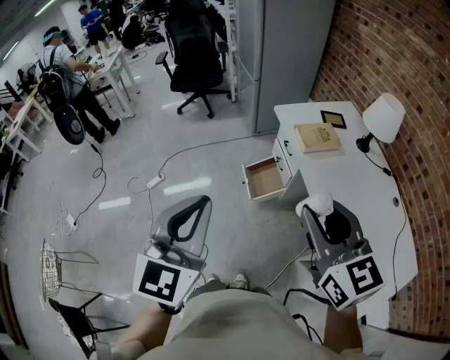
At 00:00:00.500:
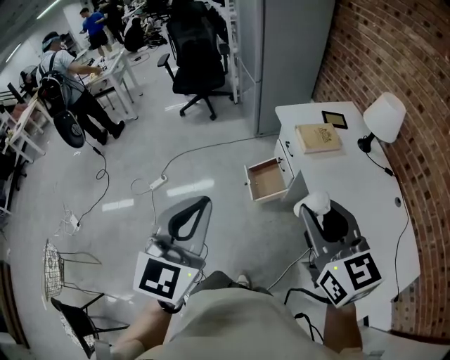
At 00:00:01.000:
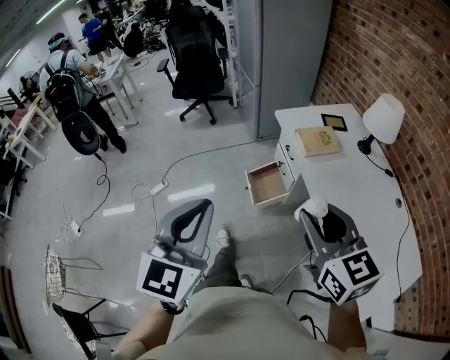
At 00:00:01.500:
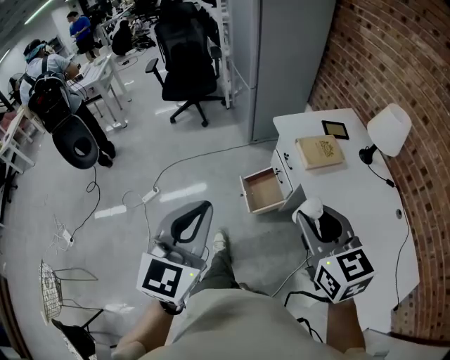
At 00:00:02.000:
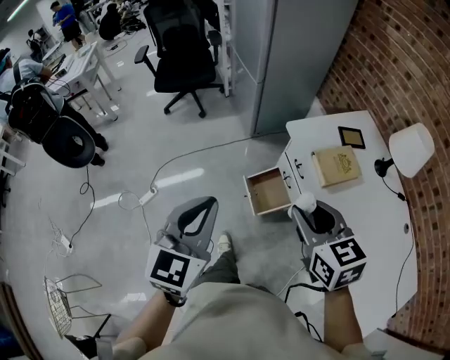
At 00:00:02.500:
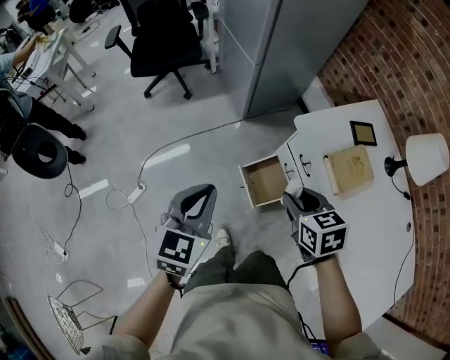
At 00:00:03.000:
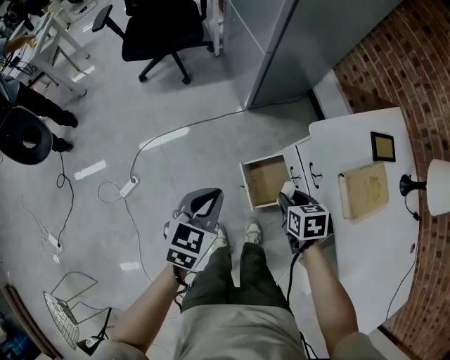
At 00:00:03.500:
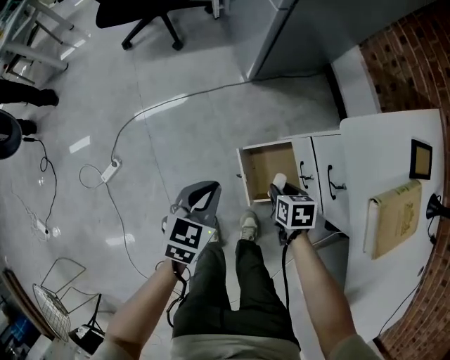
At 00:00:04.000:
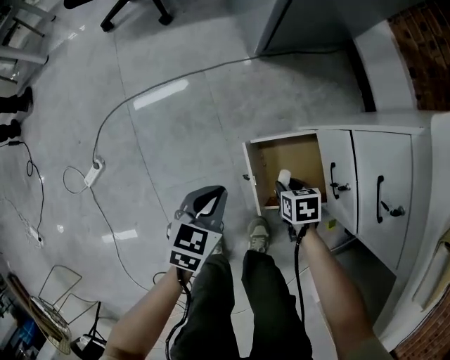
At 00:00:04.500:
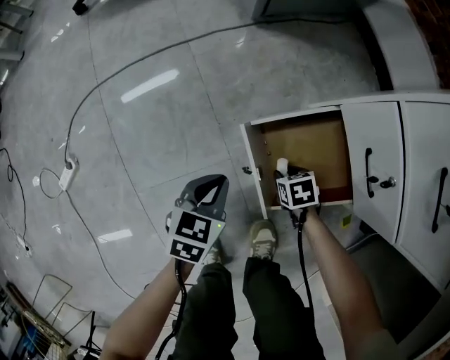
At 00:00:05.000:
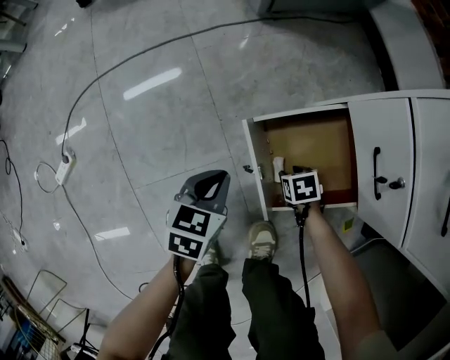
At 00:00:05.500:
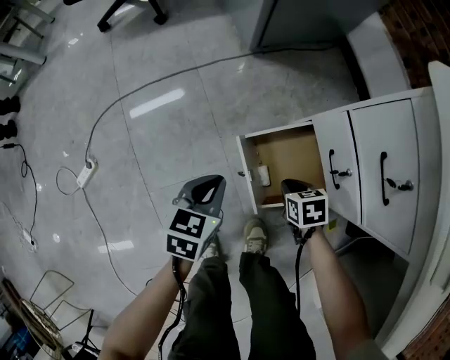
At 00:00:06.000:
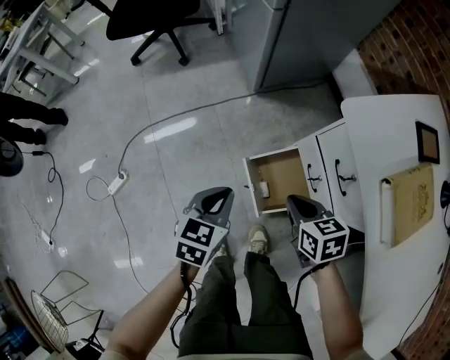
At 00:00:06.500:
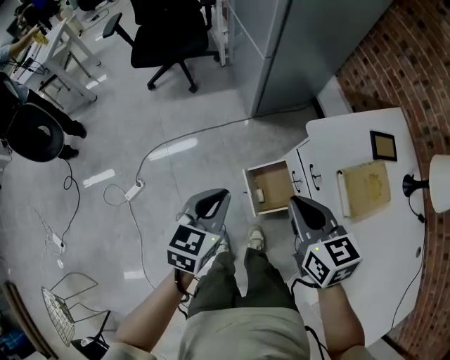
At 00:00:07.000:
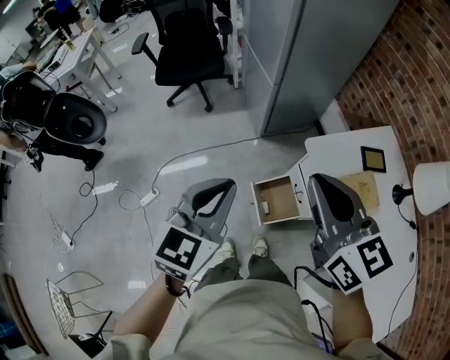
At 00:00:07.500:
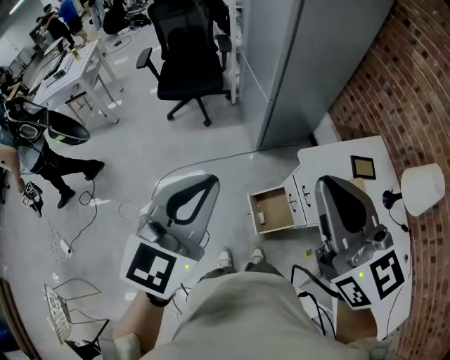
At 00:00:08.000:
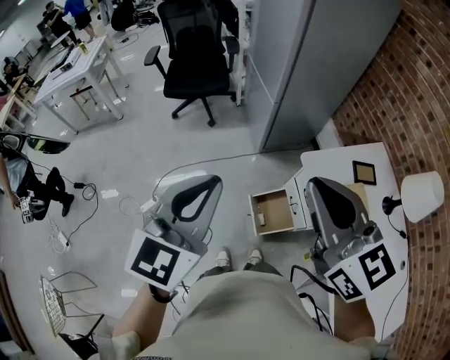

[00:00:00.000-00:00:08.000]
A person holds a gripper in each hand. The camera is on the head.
00:00:00.000 to 00:00:02.000: The right gripper moves forward and downward, about 30 cm, and rotates some 20 degrees. Meanwhile the left gripper shifts approximately 30 cm forward.
00:00:02.000 to 00:00:04.000: Both grippers travel together downward, roughly 70 cm. The left gripper changes its angle by some 40 degrees, while the right gripper tips its fingers downward by roughly 40 degrees.
00:00:04.000 to 00:00:06.000: The right gripper shifts roughly 30 cm upward, turns by some 20 degrees, and closes. Meanwhile the left gripper is displaced upward by approximately 15 cm.
00:00:06.000 to 00:00:08.000: The grippers both shift upward by some 60 cm. The right gripper points its fingers approximately 40 degrees further upward, while the left gripper changes its angle by some 40 degrees.

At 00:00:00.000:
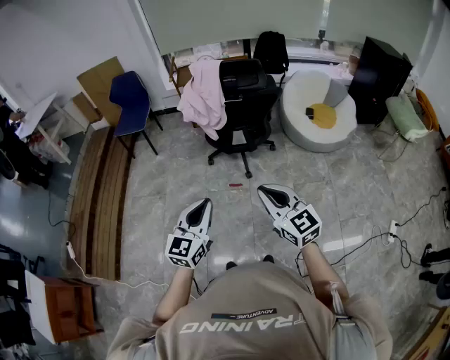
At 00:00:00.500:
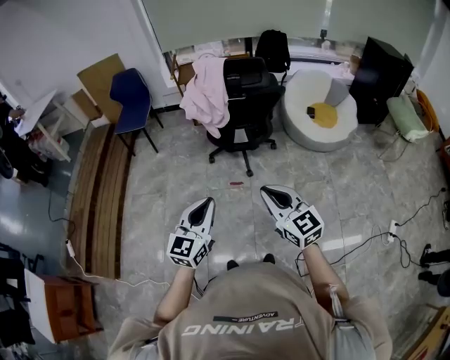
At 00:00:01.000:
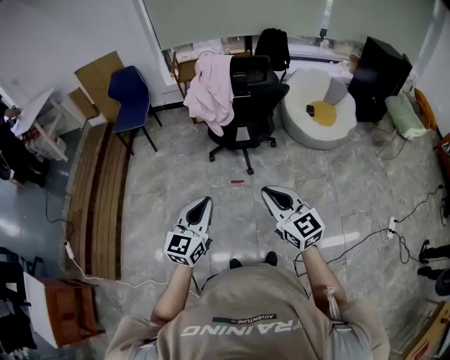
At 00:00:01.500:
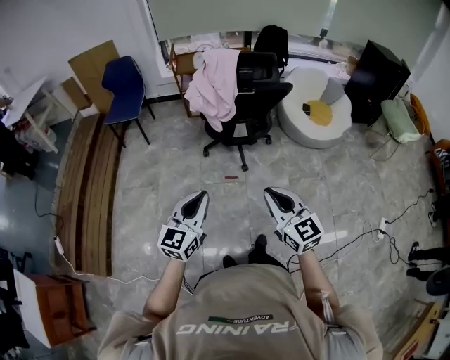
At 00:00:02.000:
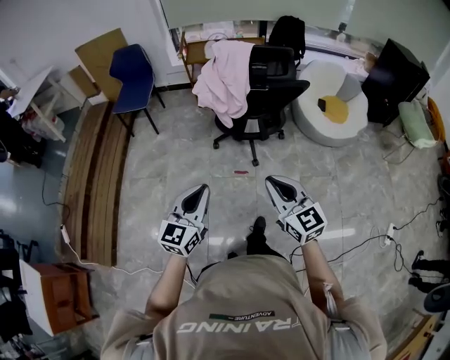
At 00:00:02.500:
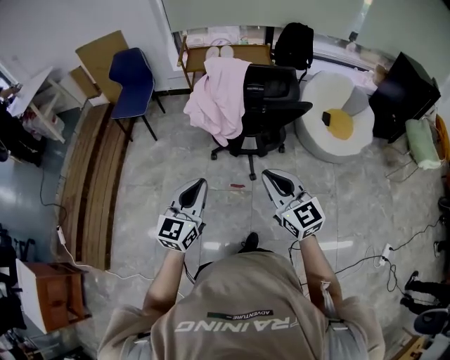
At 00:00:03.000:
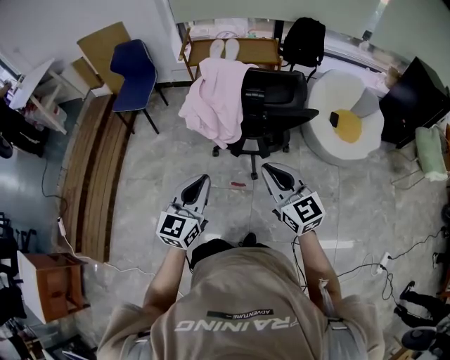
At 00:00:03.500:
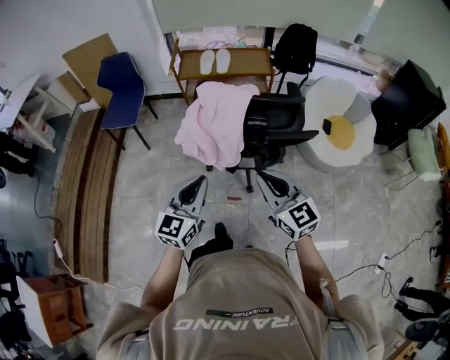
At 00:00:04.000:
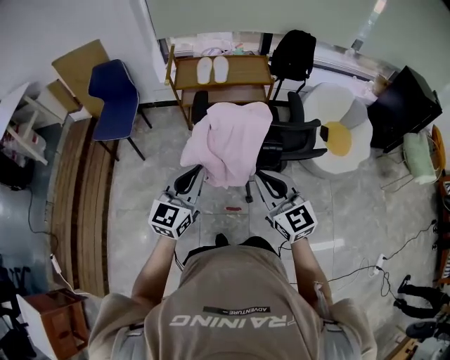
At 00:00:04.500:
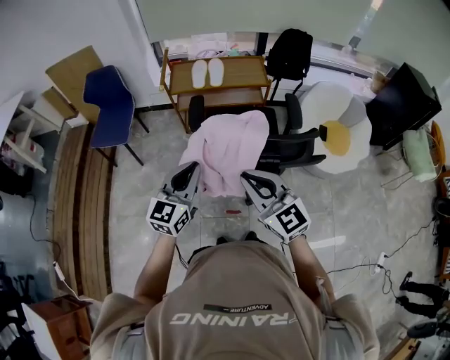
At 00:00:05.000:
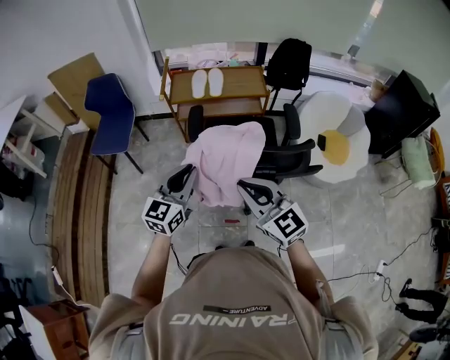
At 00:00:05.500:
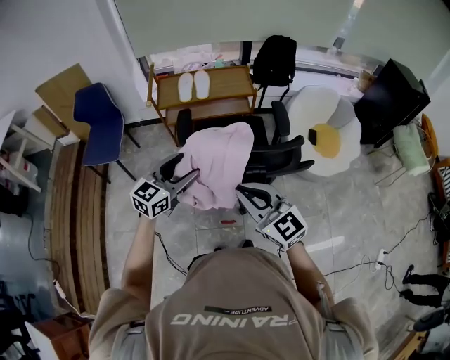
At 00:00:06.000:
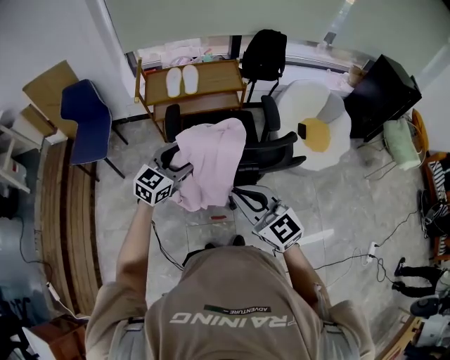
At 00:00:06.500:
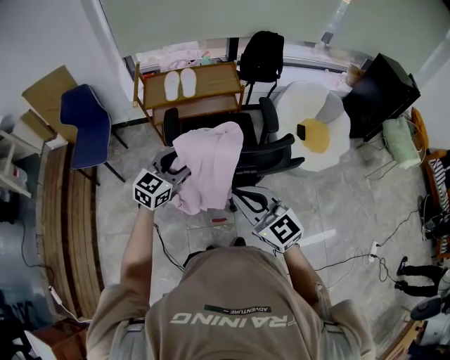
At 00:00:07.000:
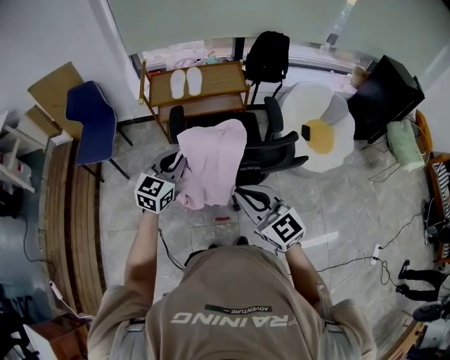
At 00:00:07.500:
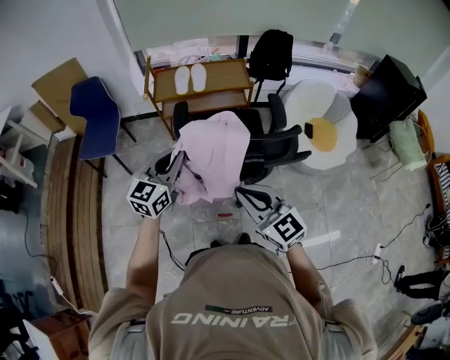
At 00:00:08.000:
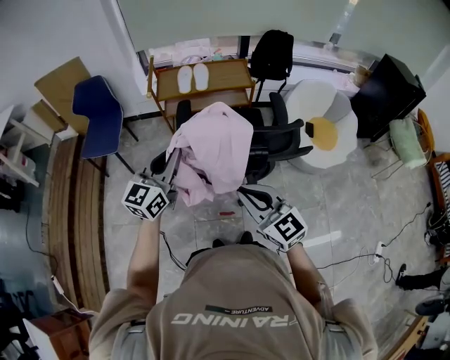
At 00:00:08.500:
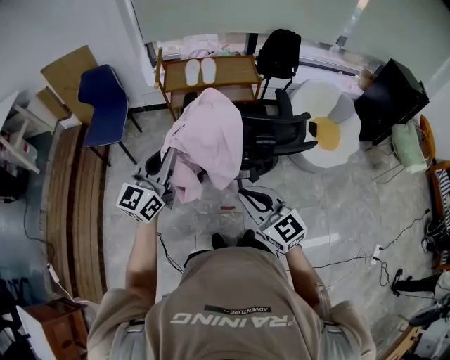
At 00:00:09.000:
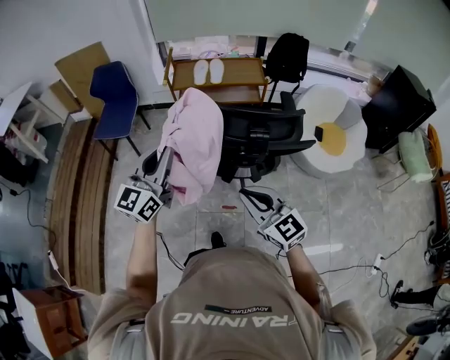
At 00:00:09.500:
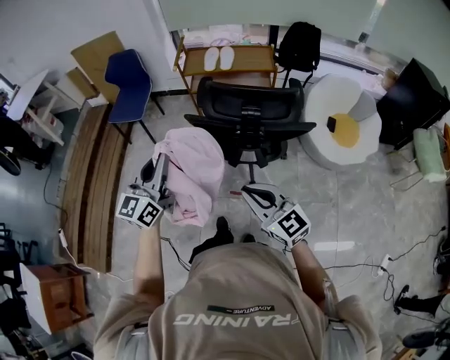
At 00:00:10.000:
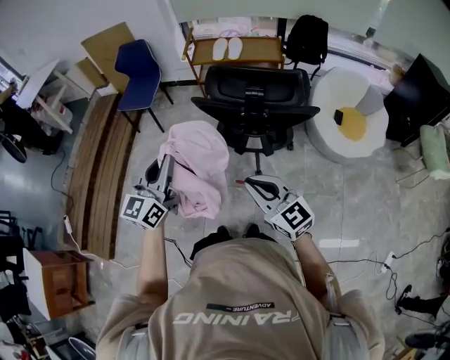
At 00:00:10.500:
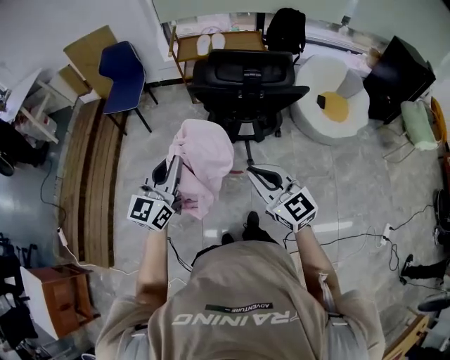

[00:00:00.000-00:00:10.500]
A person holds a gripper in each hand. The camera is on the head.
00:00:00.000 to 00:00:02.000: The two grippers go approximately 10 cm forward and to the left.
00:00:02.000 to 00:00:04.000: The two grippers go some 40 cm forward.
00:00:04.000 to 00:00:06.500: The left gripper heads forward, covering roughly 15 cm, turns by some 20 degrees, and opens.
00:00:06.500 to 00:00:08.500: The left gripper is displaced backward, to the left and upward by roughly 20 cm, changes its angle by about 30 degrees, and closes its fingers. The right gripper is displaced backward by some 10 cm.
00:00:08.500 to 00:00:10.500: The two grippers go some 25 cm backward.

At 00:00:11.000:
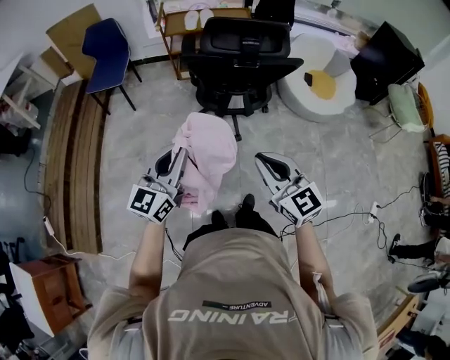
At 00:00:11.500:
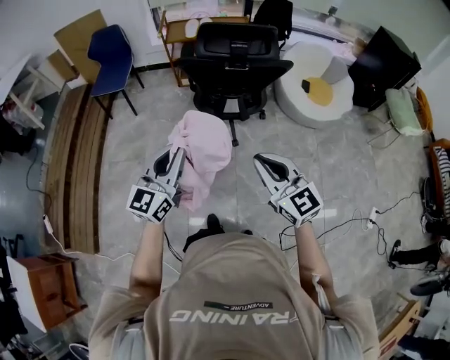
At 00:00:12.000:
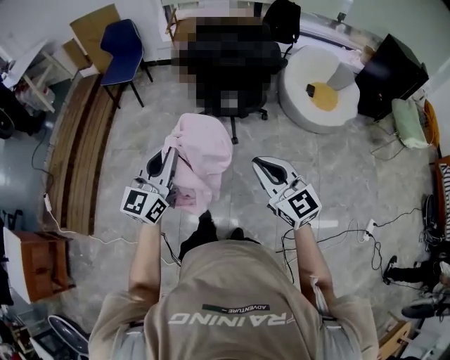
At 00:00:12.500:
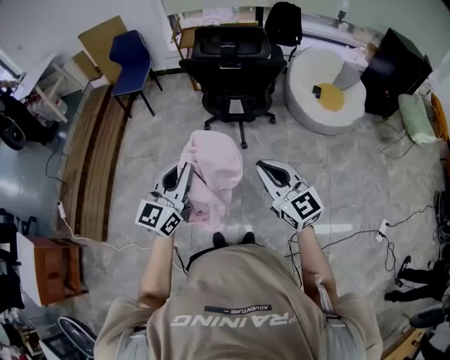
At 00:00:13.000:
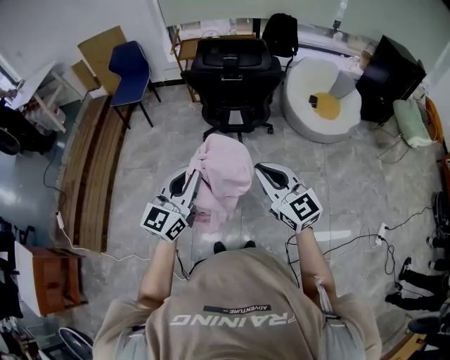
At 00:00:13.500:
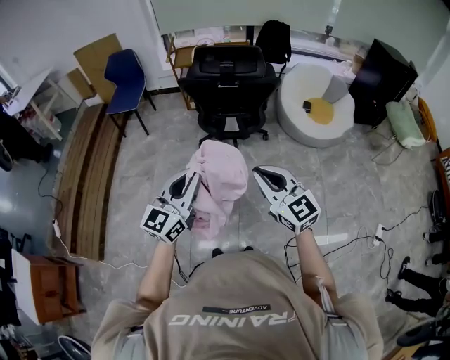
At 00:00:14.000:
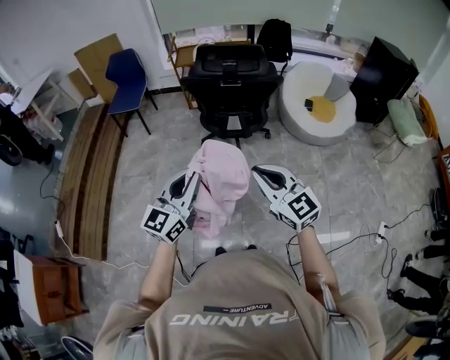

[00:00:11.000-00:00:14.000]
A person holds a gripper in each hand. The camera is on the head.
00:00:11.000 to 00:00:12.500: Both grippers travel together backward and to the right, about 20 cm.
00:00:12.500 to 00:00:14.000: The grippers move only a little.

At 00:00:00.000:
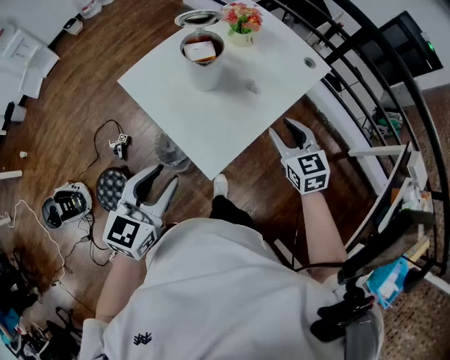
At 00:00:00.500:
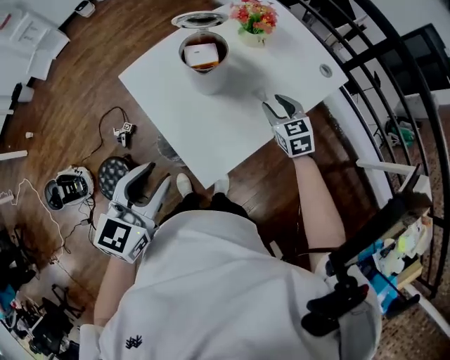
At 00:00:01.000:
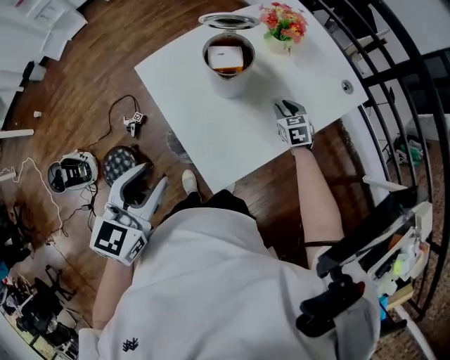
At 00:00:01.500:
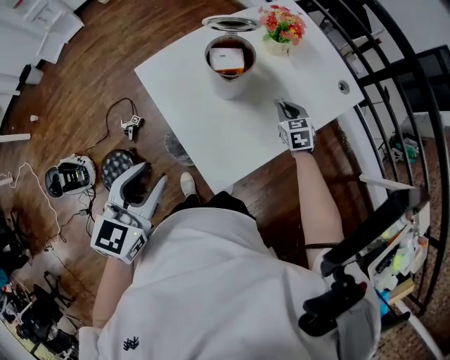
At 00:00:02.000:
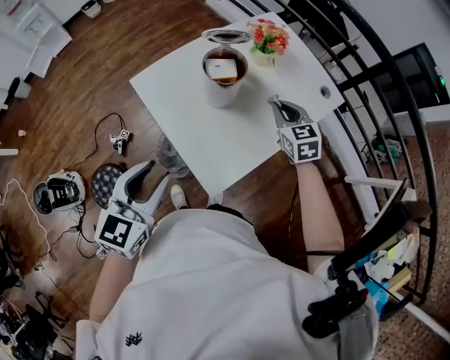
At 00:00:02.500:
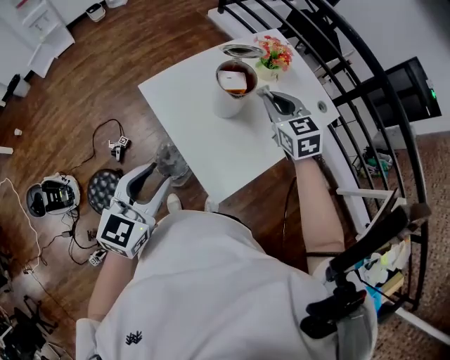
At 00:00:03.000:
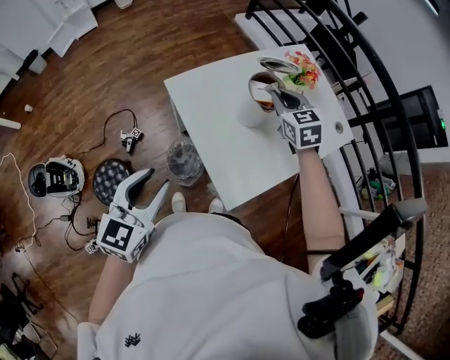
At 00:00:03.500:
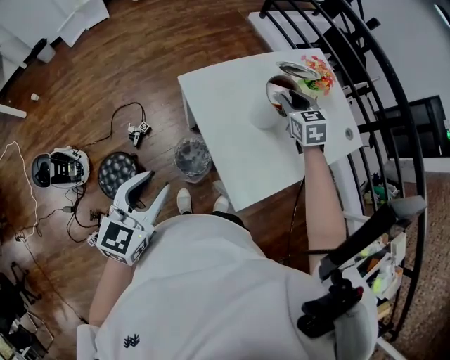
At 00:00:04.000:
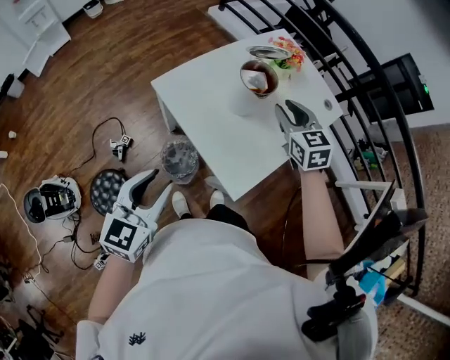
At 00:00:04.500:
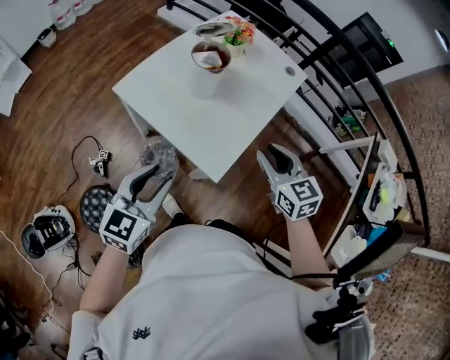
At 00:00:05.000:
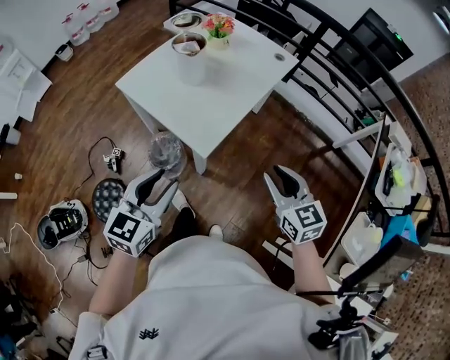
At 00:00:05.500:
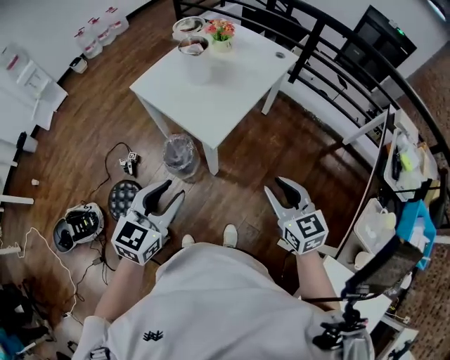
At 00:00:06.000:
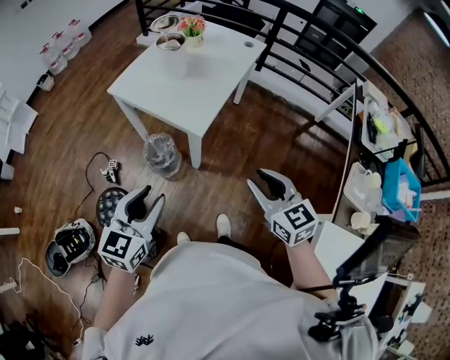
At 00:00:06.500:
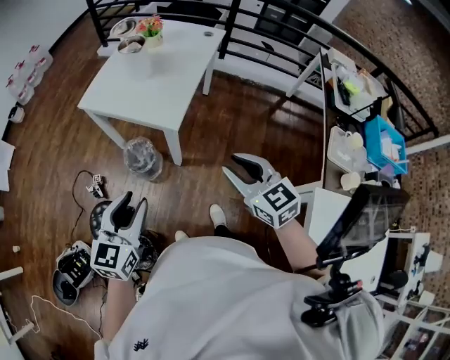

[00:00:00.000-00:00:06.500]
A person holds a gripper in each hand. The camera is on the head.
00:00:00.000 to 00:00:02.000: The right gripper heads forward, covering about 15 cm, moves some 20 cm downward and comes back, and closes. Meanwhile the left gripper moves forward, some 5 cm.
00:00:02.000 to 00:00:04.500: The right gripper moves backward, roughly 25 cm, and opens its fingers. The left gripper is displaced to the left and backward by roughly 10 cm.
00:00:04.500 to 00:00:06.500: The two grippers go roughly 30 cm backward.
